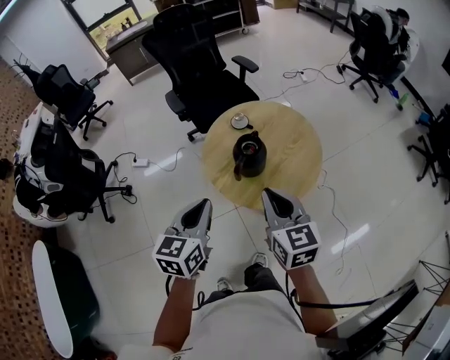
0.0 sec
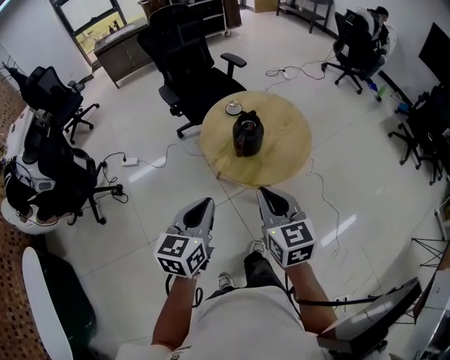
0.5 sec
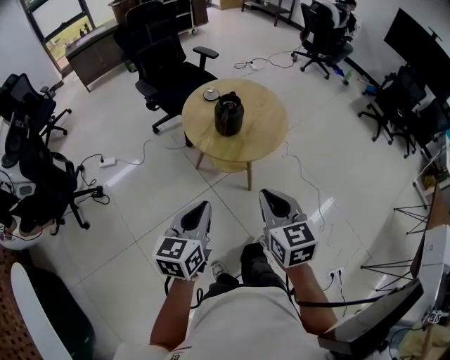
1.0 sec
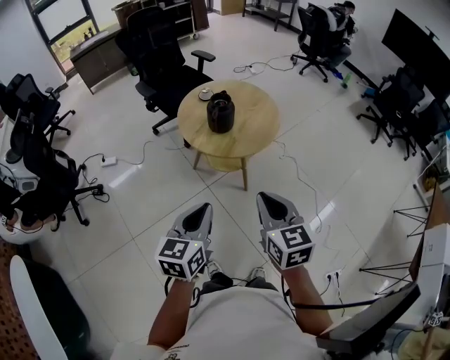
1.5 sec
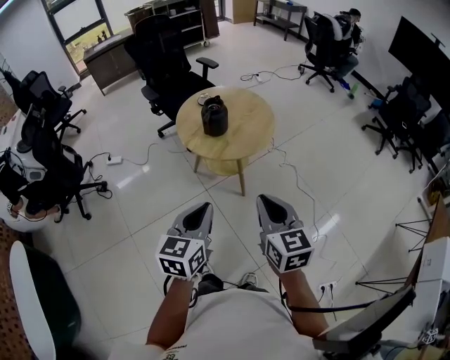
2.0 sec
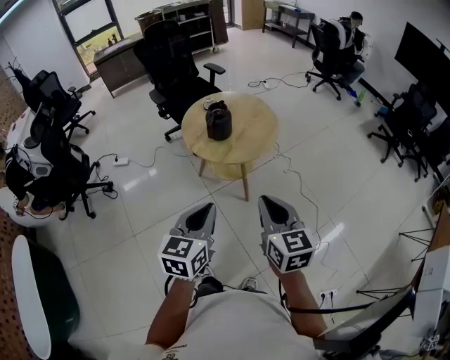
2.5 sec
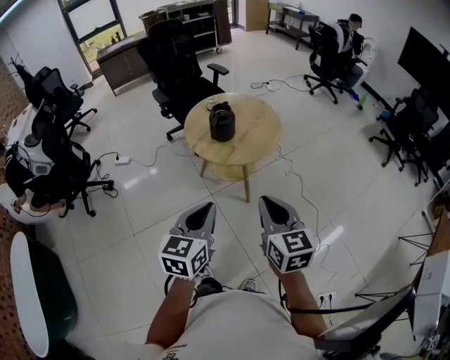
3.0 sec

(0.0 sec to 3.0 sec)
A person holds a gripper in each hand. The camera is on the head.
0.0 sec - 1.5 sec: Both grippers move backward, some 25 cm.
1.5 sec - 3.0 sec: Both grippers move to the right, about 5 cm.

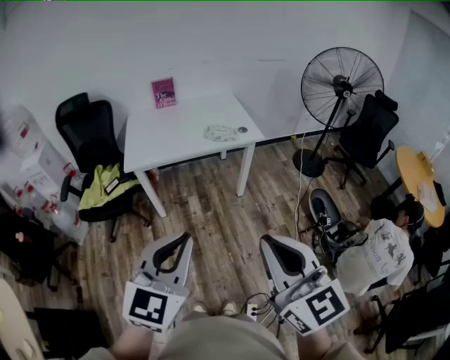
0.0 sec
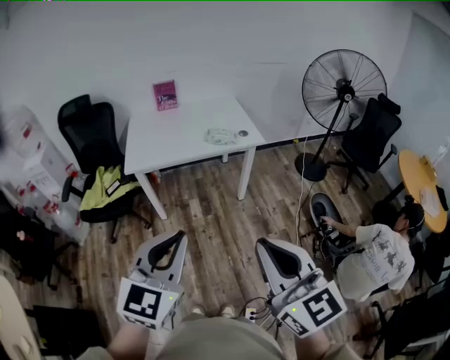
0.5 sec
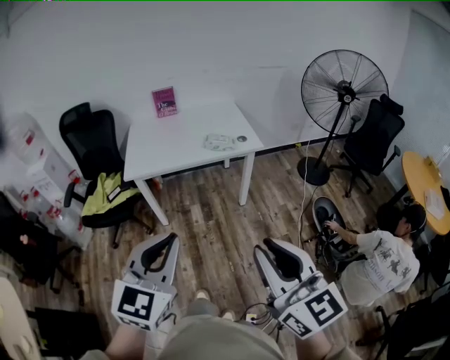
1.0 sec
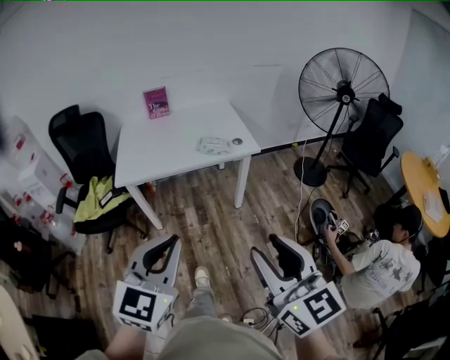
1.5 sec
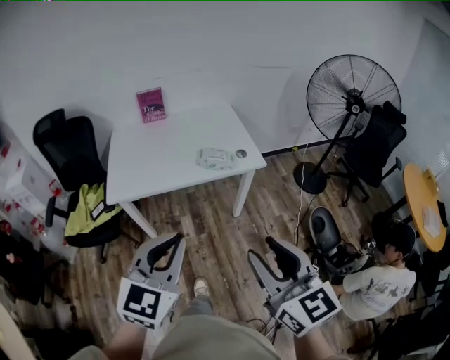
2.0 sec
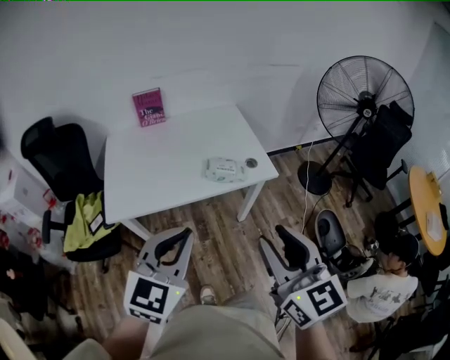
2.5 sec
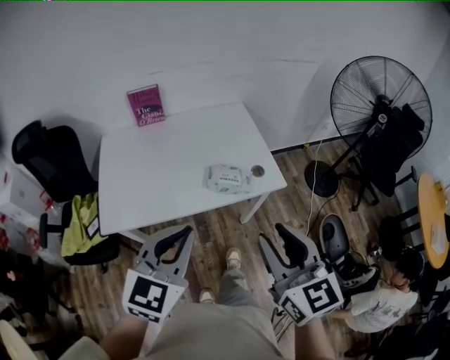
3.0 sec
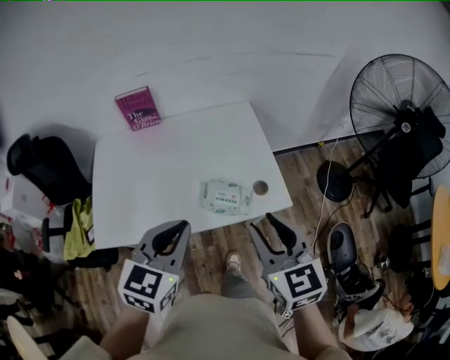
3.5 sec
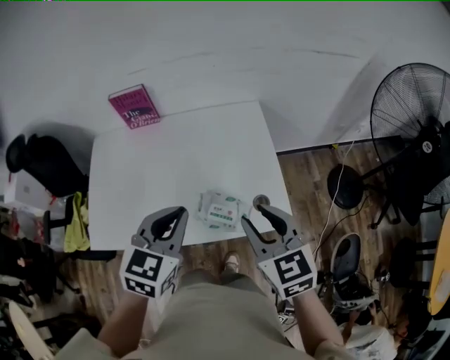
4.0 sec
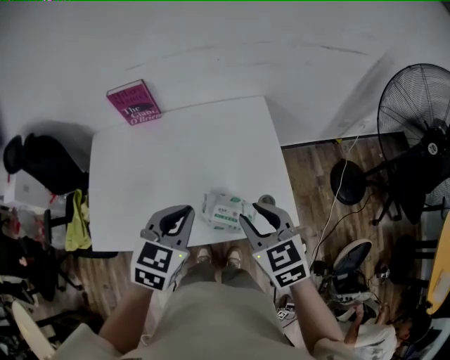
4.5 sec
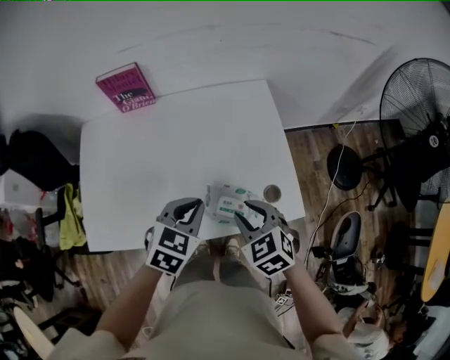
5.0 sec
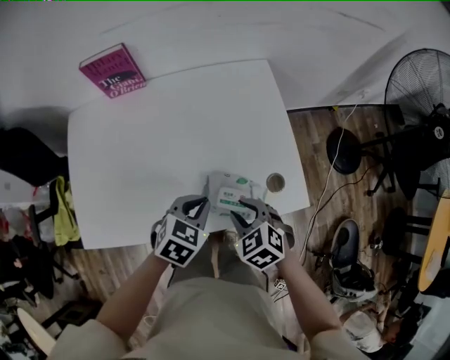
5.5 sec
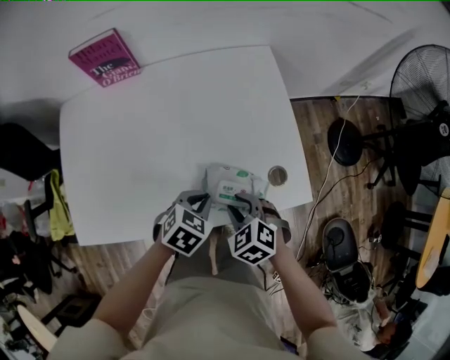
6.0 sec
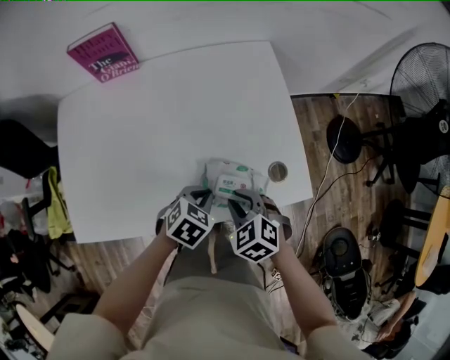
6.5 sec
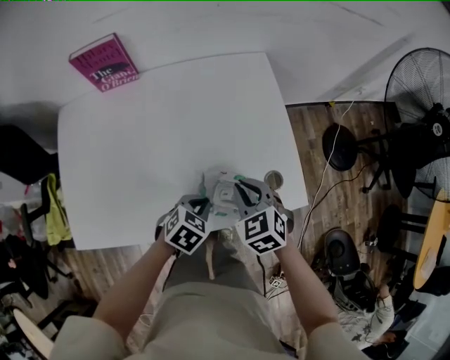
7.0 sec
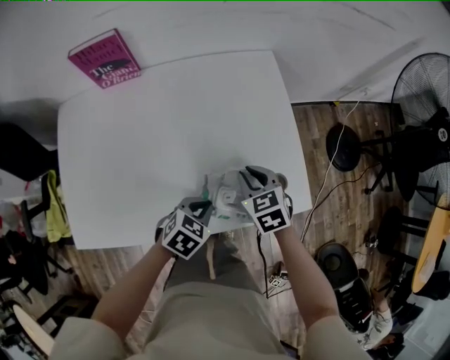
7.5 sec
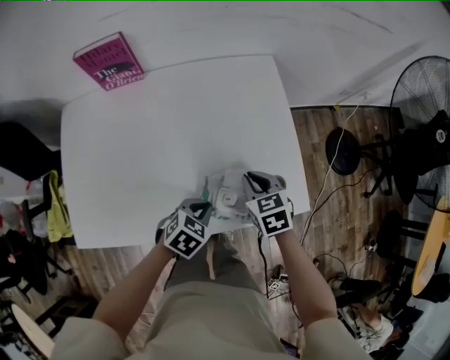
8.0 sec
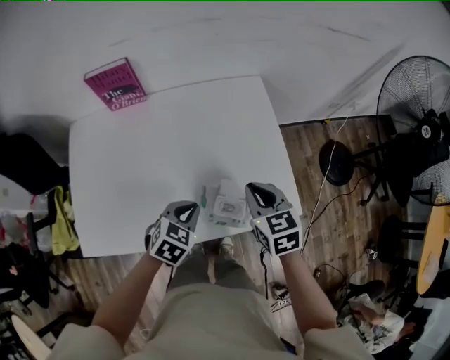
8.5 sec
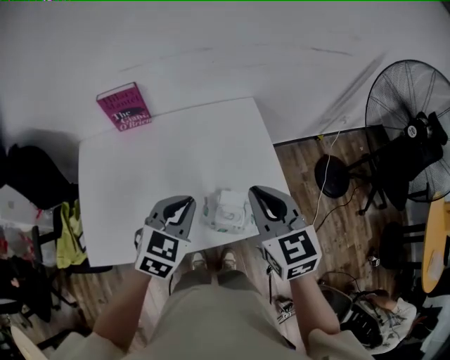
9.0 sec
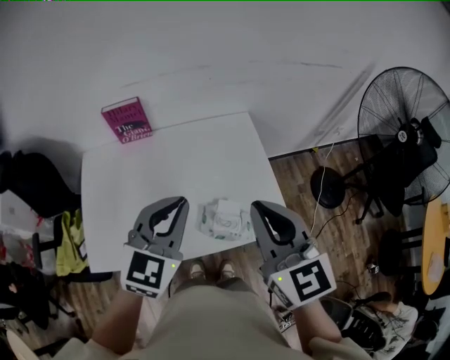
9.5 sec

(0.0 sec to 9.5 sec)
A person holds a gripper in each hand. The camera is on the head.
0.0 sec - 2.0 sec: Both grippers move forward, about 25 cm. The right gripper opens.
2.0 sec - 4.0 sec: Both grippers are carried forward, approximately 50 cm. The right gripper turns by about 20 degrees.
4.0 sec - 5.5 sec: The two grippers go roughly 20 cm downward. The left gripper turns by roughly 30 degrees. The right gripper tilts its fingers about 30 degrees downward.
5.5 sec - 7.5 sec: The left gripper heads downward, covering some 10 cm. The right gripper shifts roughly 10 cm forward.
7.5 sec - 9.5 sec: Both grippers move upward, about 35 cm. The left gripper points its fingers about 40 degrees further upward. Meanwhile the right gripper angles its fingers upward, by approximately 40 degrees.

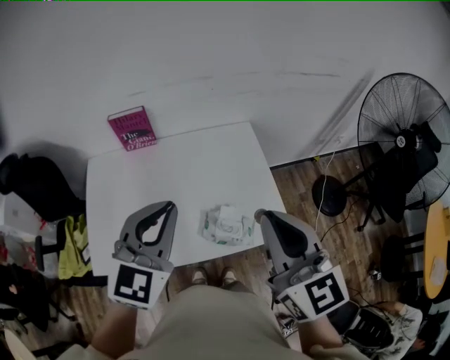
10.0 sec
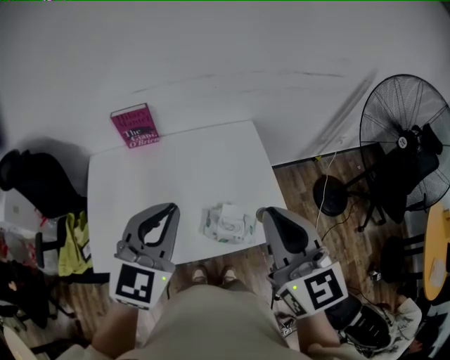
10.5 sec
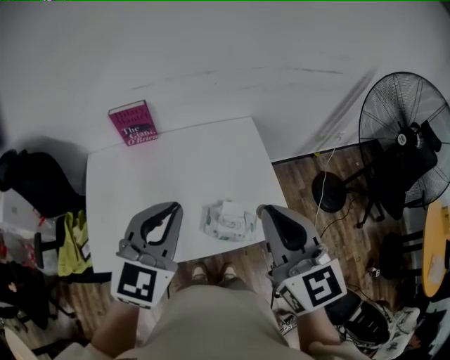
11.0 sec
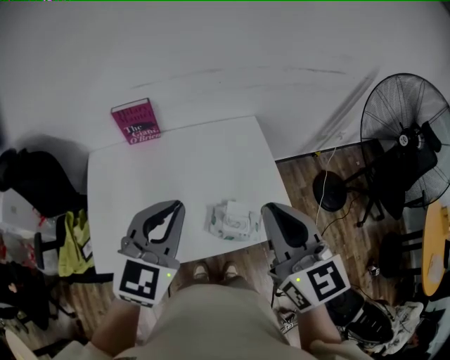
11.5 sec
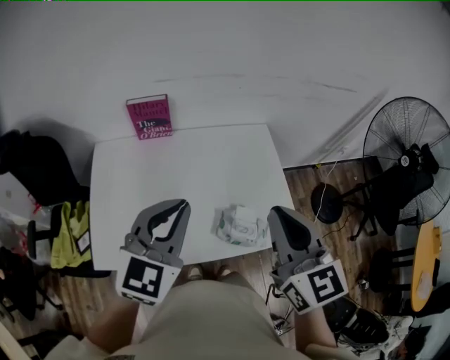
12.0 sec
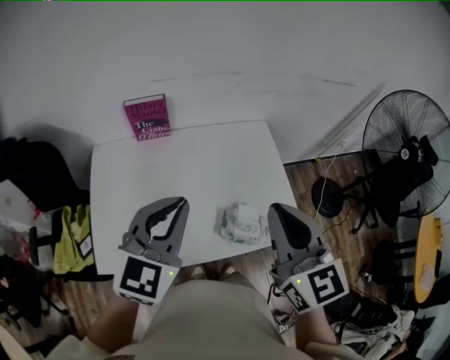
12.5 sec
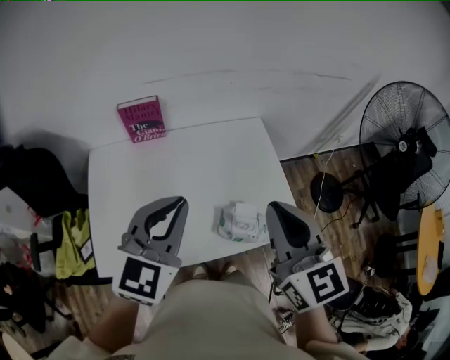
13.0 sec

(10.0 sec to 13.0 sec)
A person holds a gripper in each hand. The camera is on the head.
10.0 sec - 11.5 sec: The grippers make only small movements.
11.5 sec - 13.0 sec: The grippers stay close to where they were, moving slightly.

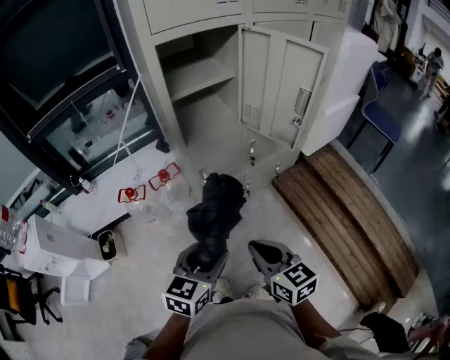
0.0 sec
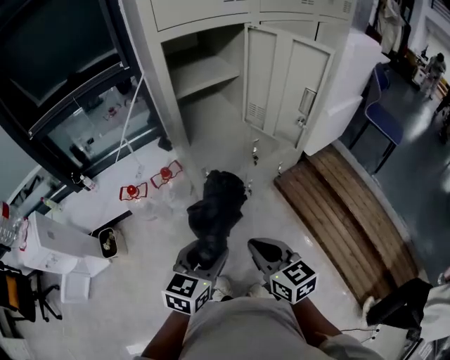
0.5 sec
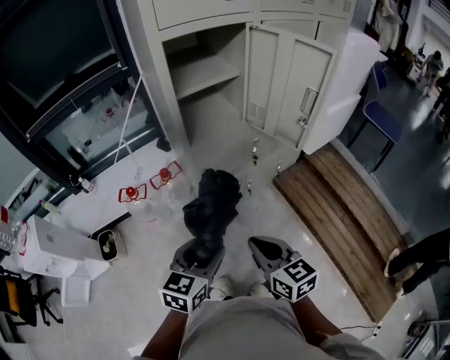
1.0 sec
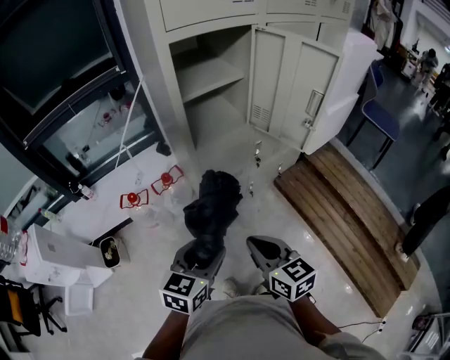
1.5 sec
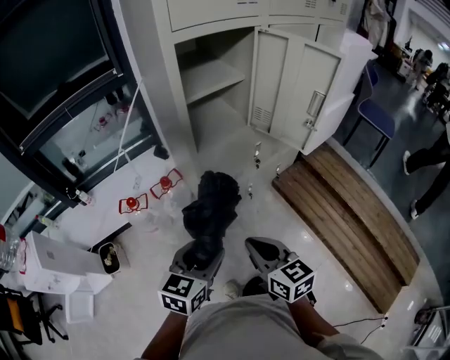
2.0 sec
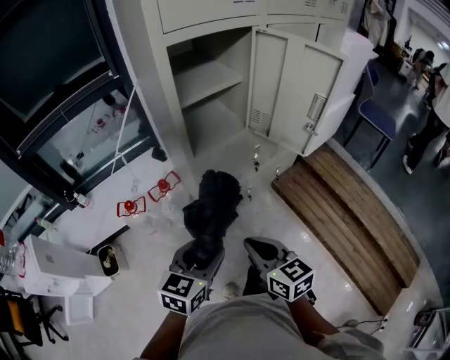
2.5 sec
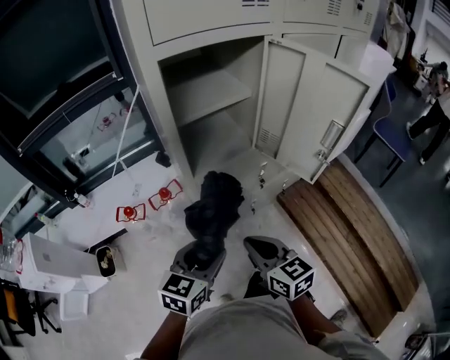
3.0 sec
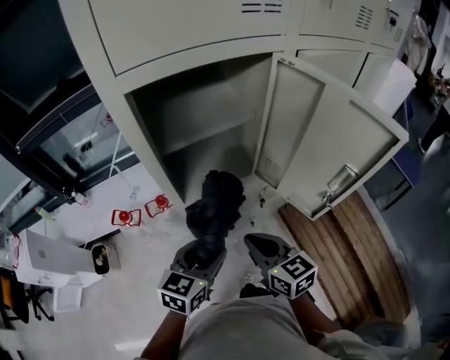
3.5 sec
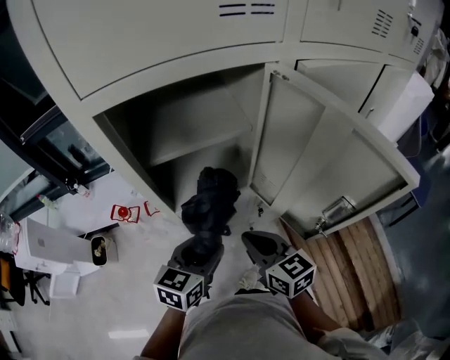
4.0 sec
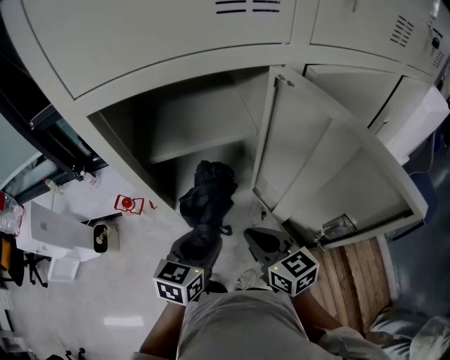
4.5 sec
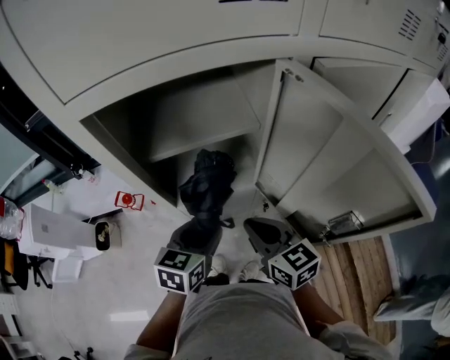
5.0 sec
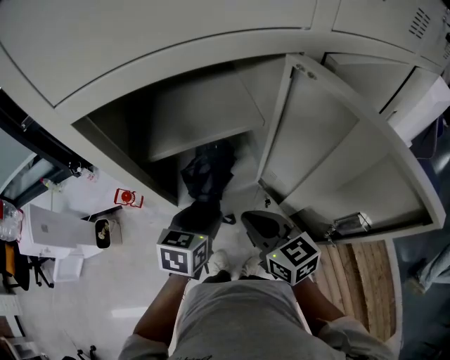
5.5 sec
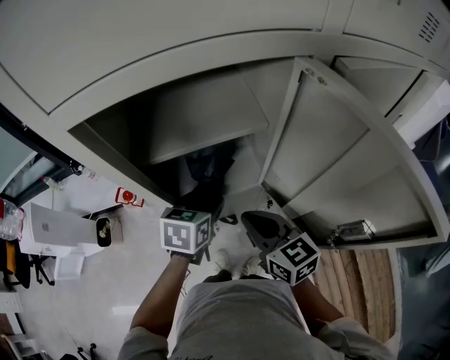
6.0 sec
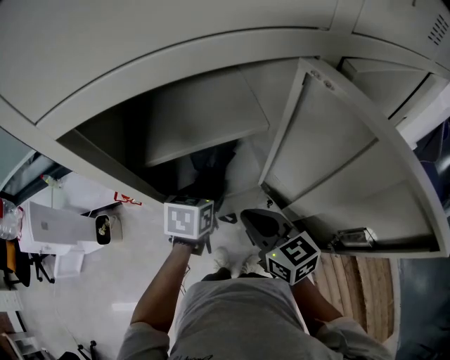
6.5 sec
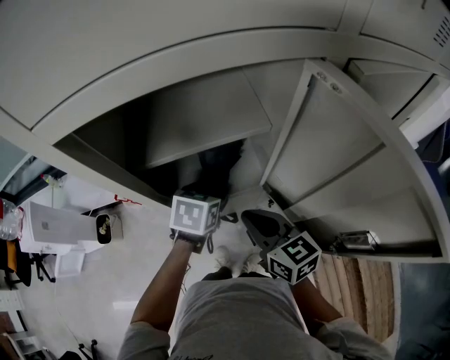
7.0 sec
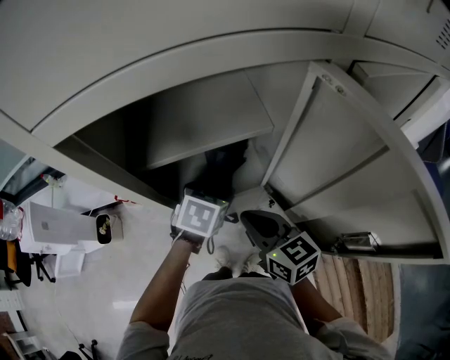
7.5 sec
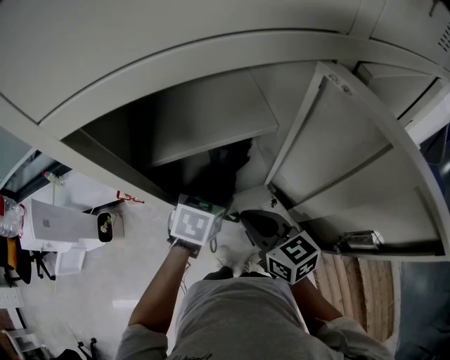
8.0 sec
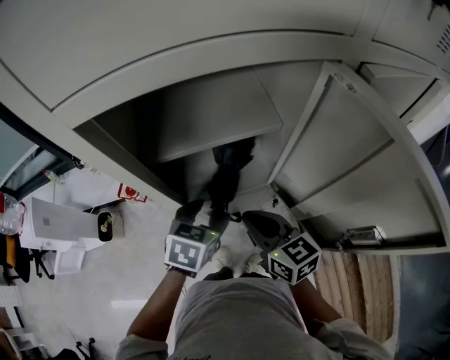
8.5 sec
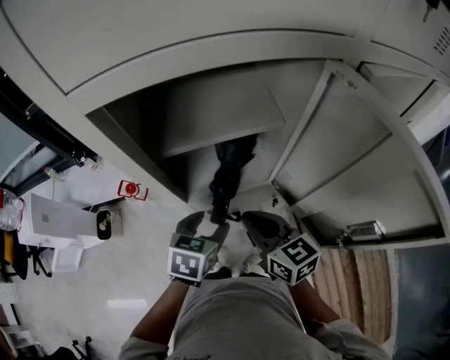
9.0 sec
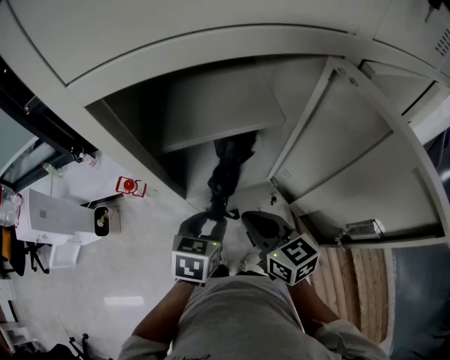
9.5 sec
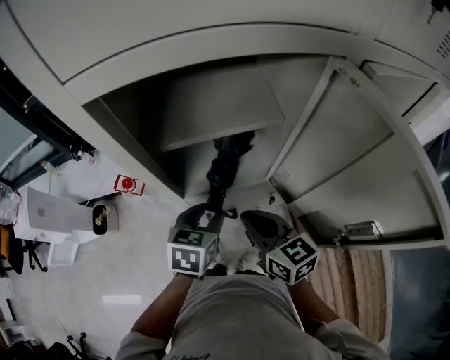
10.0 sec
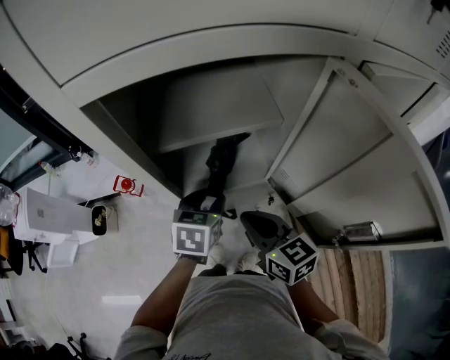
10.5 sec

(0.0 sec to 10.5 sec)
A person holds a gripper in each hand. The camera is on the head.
0.0 sec - 2.0 sec: The two grippers go some 10 cm to the left.
2.0 sec - 4.0 sec: The grippers both shift forward and to the right by about 30 cm.
4.0 sec - 6.5 sec: The right gripper shifts about 5 cm forward. Meanwhile the left gripper moves forward, about 15 cm, and turns by roughly 20 degrees.
6.5 sec - 8.5 sec: The left gripper travels backward by approximately 5 cm.
8.5 sec - 10.5 sec: The left gripper closes up.
